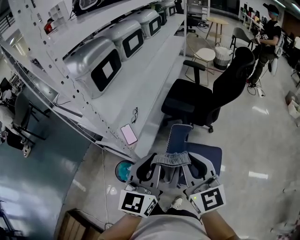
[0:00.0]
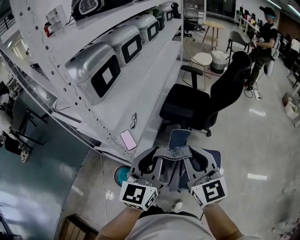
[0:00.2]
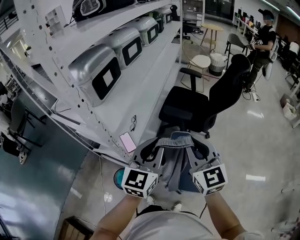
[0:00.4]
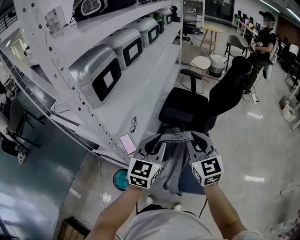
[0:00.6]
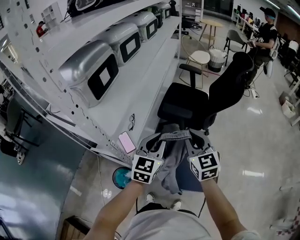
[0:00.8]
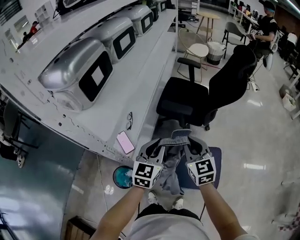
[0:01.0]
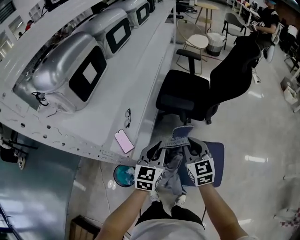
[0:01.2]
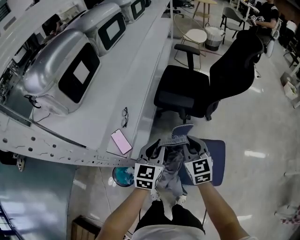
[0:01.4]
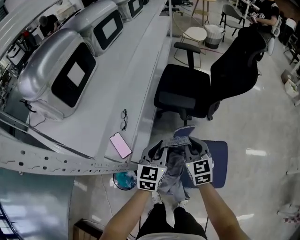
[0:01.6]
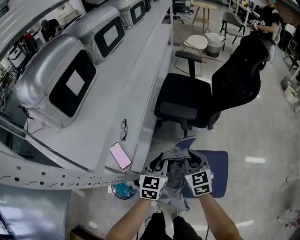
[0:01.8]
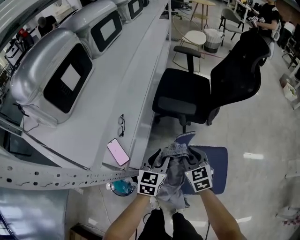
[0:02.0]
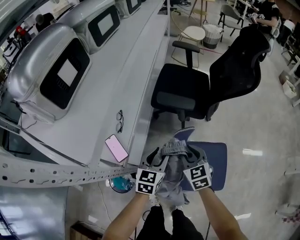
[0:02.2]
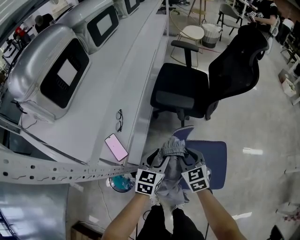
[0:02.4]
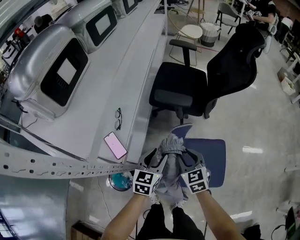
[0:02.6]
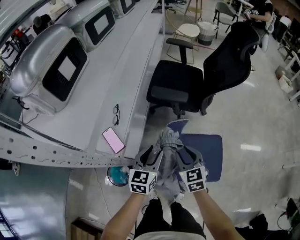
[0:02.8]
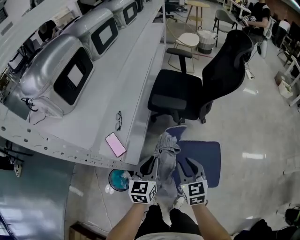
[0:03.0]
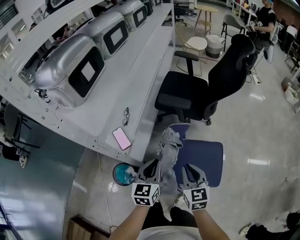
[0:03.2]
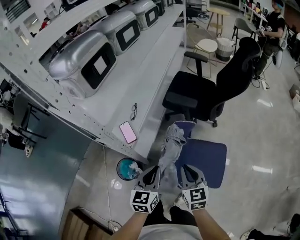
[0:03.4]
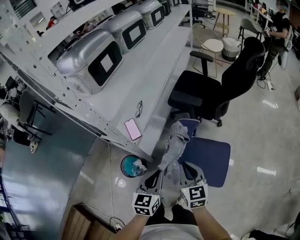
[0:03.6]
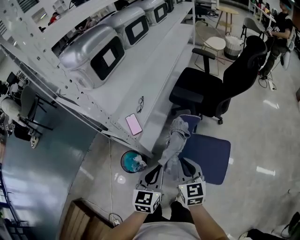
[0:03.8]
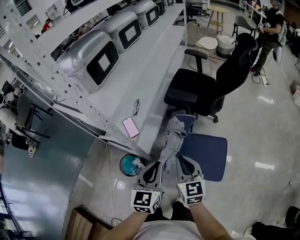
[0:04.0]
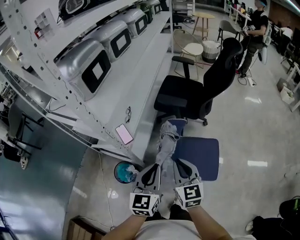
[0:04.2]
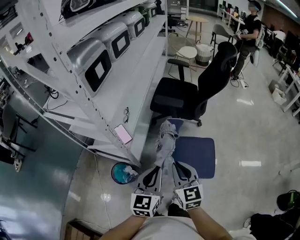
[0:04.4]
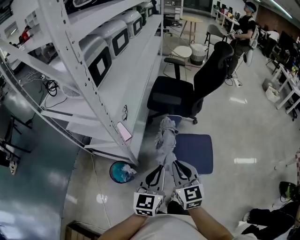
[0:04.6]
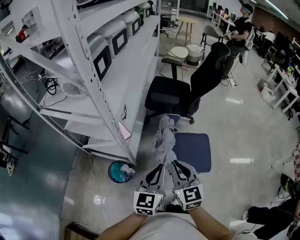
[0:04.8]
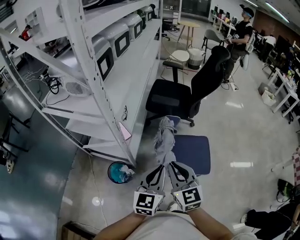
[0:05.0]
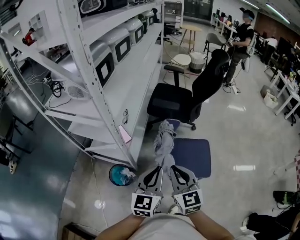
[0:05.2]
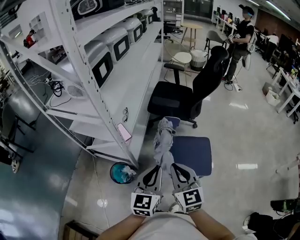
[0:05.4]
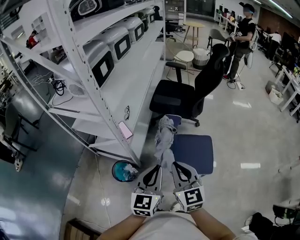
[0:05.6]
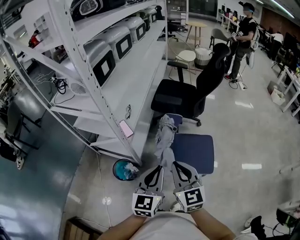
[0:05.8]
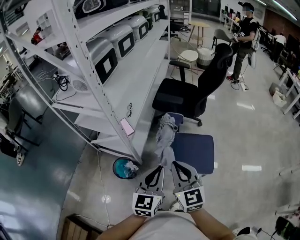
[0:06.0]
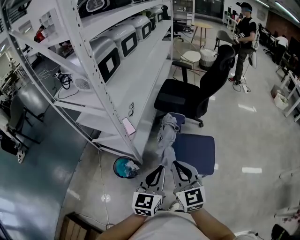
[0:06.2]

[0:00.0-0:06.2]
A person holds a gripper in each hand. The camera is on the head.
0:00.0 to 0:01.6: Both grippers move downward and forward, some 30 cm. The left gripper rotates approximately 20 degrees; the right gripper rotates approximately 30 degrees.
0:01.6 to 0:03.2: The grippers both shift backward by about 15 cm. The left gripper opens, then closes once more. The right gripper opens and closes again.
0:03.2 to 0:04.6: The left gripper shifts about 20 cm backward and upward; the right gripper shifts about 20 cm backward, upward and to the left.
0:04.6 to 0:06.2: The grippers both shift backward by roughly 5 cm.

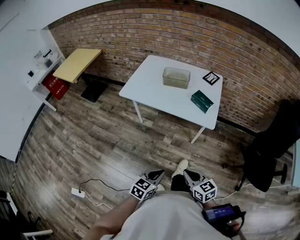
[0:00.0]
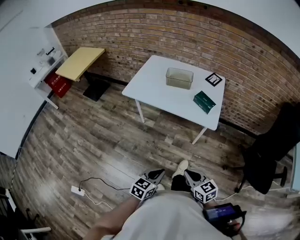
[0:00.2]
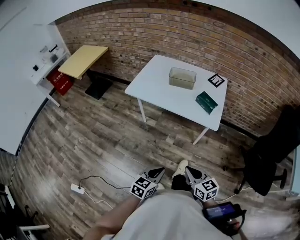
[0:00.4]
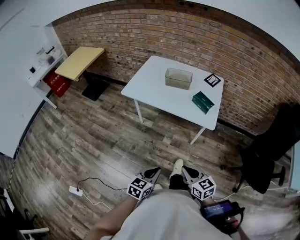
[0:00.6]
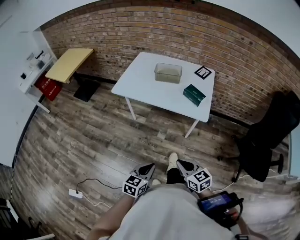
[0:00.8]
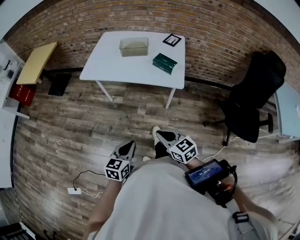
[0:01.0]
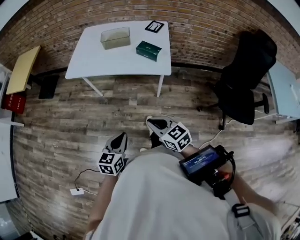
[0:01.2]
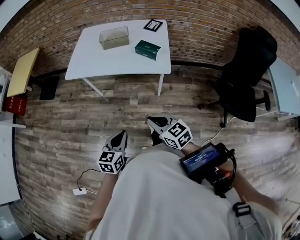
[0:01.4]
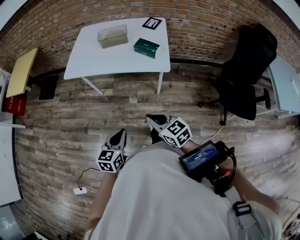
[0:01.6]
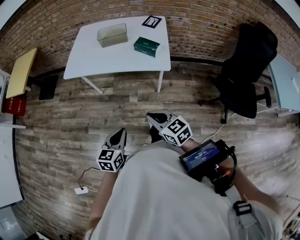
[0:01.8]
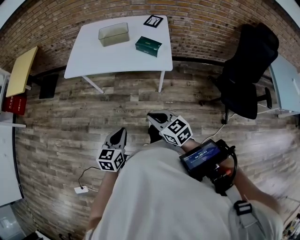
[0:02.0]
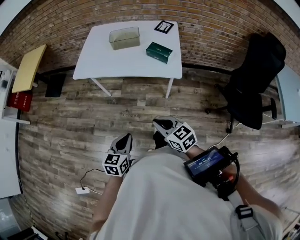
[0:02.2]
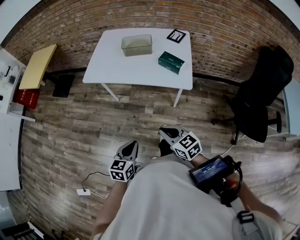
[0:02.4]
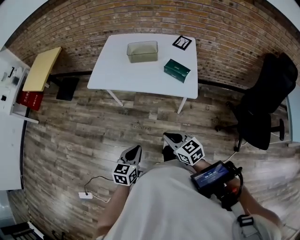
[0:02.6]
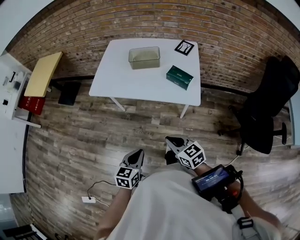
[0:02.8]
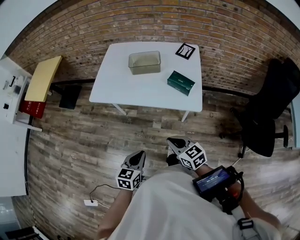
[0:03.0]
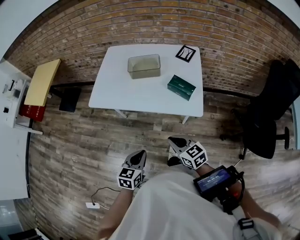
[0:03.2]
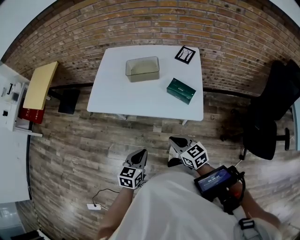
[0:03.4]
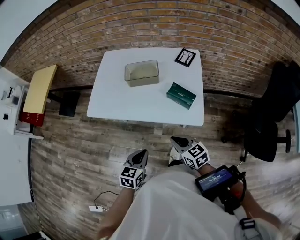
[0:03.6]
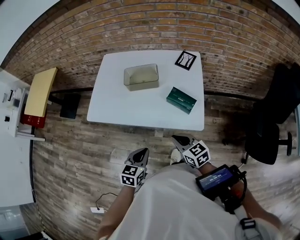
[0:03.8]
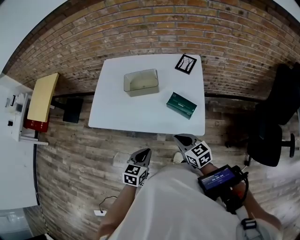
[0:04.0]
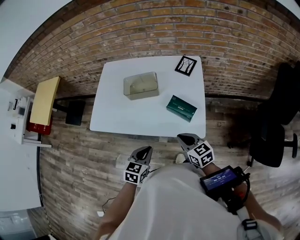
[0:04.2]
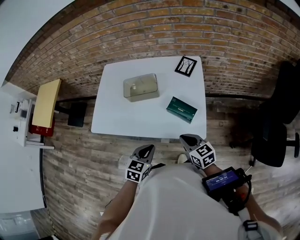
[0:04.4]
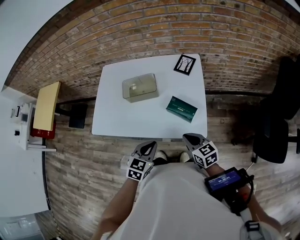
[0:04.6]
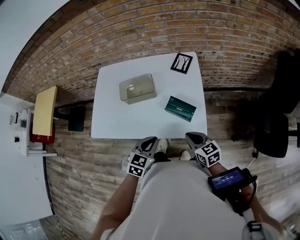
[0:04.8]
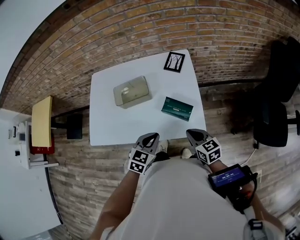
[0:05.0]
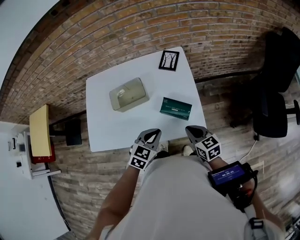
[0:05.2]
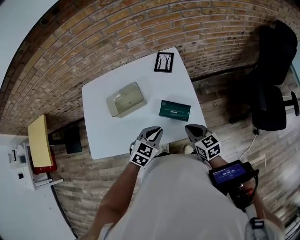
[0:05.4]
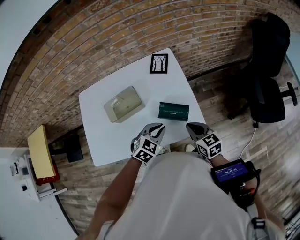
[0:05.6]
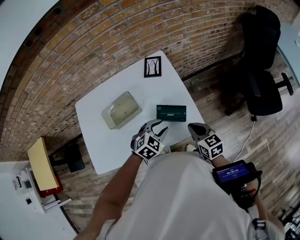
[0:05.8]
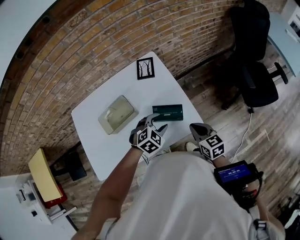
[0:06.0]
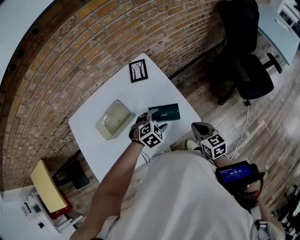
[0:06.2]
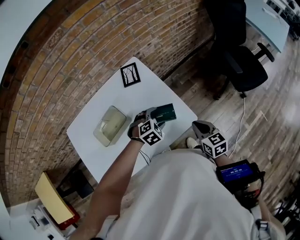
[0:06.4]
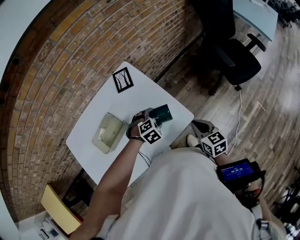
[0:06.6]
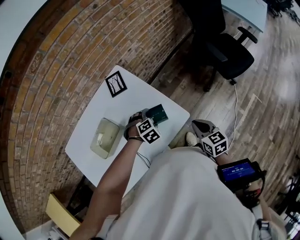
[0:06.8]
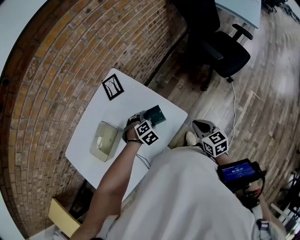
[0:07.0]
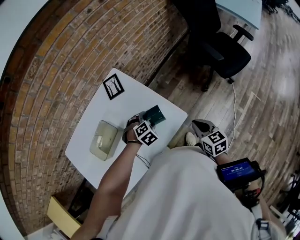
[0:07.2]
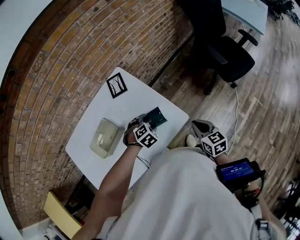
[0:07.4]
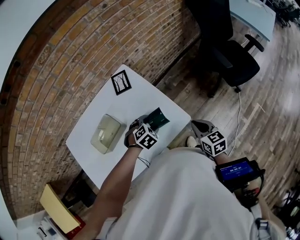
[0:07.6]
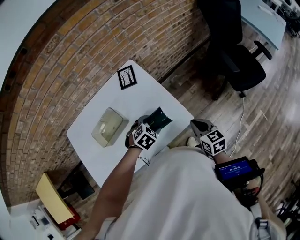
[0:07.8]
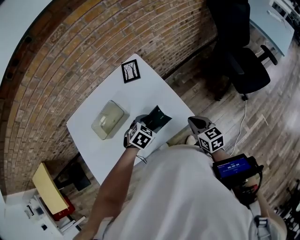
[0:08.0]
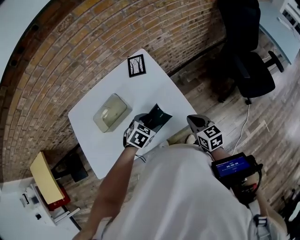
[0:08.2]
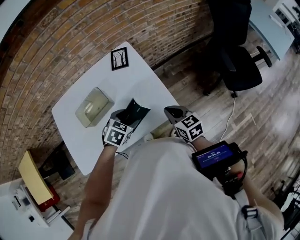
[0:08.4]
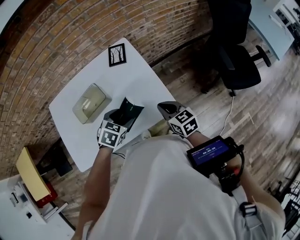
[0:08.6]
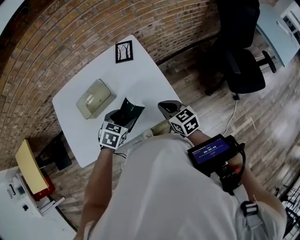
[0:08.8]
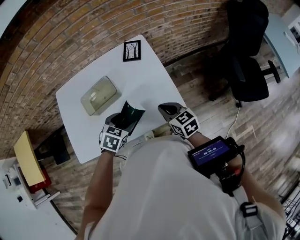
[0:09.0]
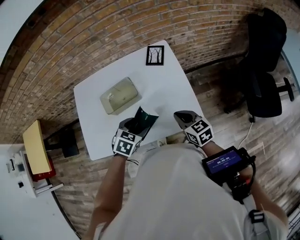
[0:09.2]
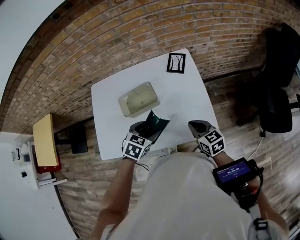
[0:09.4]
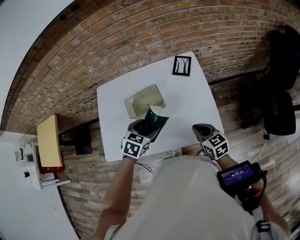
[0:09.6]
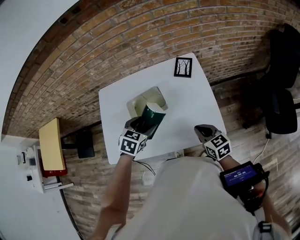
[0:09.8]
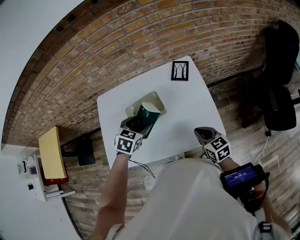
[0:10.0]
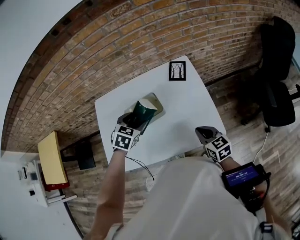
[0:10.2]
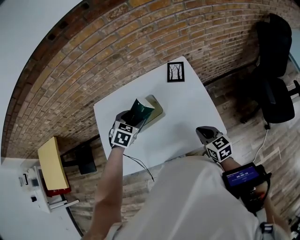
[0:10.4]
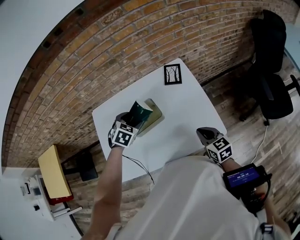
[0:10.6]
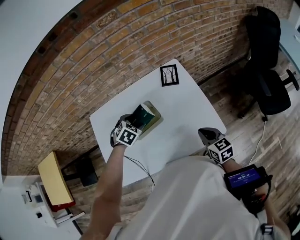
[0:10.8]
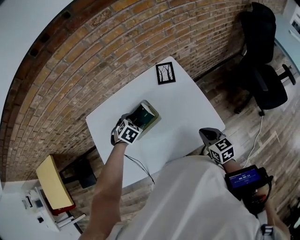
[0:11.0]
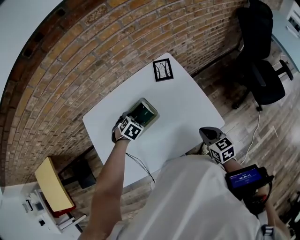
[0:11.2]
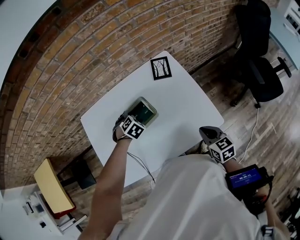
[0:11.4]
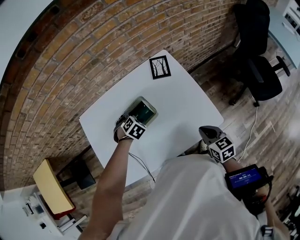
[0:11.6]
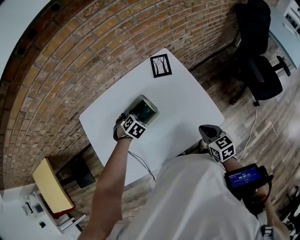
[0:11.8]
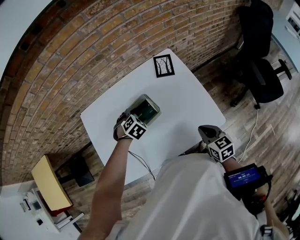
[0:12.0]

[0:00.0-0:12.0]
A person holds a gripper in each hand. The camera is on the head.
0:00.0 to 0:01.6: There are only small adjustments of the grippers.
0:01.6 to 0:03.0: The grippers both shift forward by roughly 10 cm.
0:03.0 to 0:04.4: The two grippers go roughly 20 cm forward and to the right.
0:04.4 to 0:06.0: The left gripper changes place by approximately 20 cm, rotates around the line of its fingers by roughly 60 degrees, clockwise from behind, and opens up. Meanwhile the right gripper moves about 10 cm, and turns by roughly 40 degrees.
0:06.0 to 0:07.6: The right gripper shifts approximately 10 cm to the right.
0:07.6 to 0:09.0: The right gripper shifts approximately 15 cm to the left, and turns by roughly 30 degrees. The left gripper goes about 15 cm to the left, backward and upward, and rolls counterclockwise, seen from behind, by approximately 40 degrees.
0:09.0 to 0:10.4: The left gripper shifts about 20 cm forward, to the left and upward.
0:10.4 to 0:12.0: The left gripper goes some 10 cm downward, and turns by roughly 30 degrees.

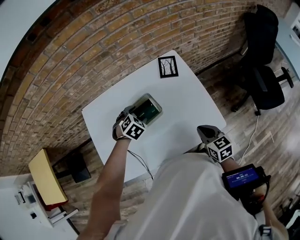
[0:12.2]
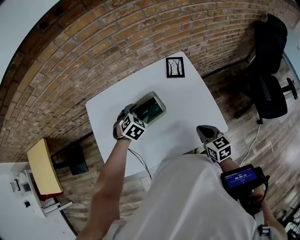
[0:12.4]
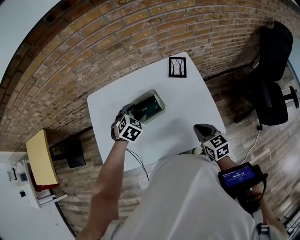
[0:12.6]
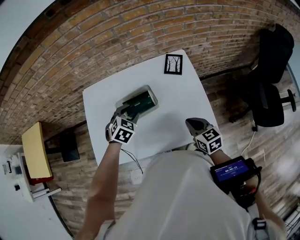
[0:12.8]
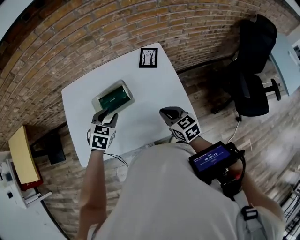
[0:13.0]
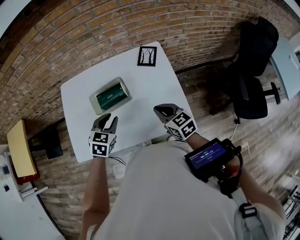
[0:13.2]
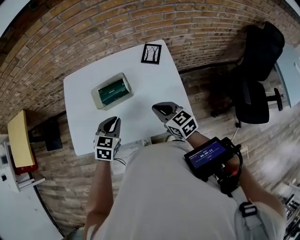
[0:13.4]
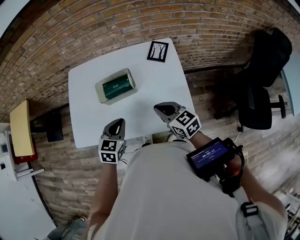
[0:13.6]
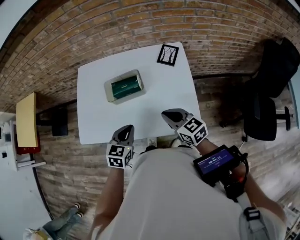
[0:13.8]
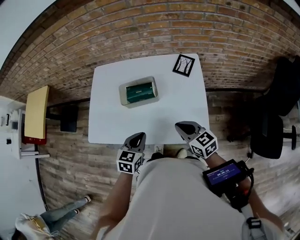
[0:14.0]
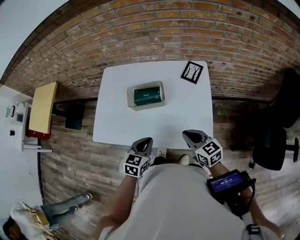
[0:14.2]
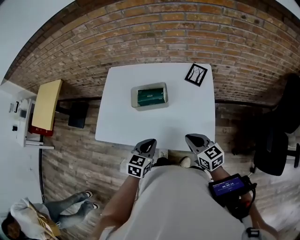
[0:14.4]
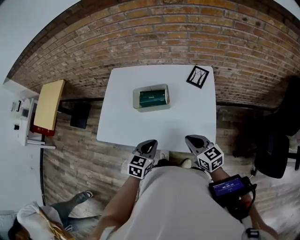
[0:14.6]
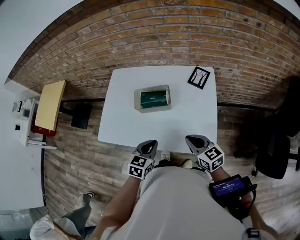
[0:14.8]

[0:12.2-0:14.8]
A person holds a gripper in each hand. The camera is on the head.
0:12.2 to 0:13.4: The left gripper shifts about 15 cm backward and upward, turns by approximately 40 degrees, and closes up, while the right gripper ends up some 5 cm from where it was, and changes its angle by roughly 30 degrees.
0:13.4 to 0:14.8: The left gripper heads backward, covering roughly 10 cm, while the right gripper travels backward by approximately 5 cm.

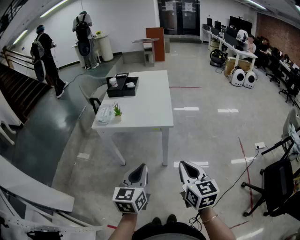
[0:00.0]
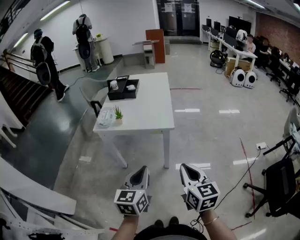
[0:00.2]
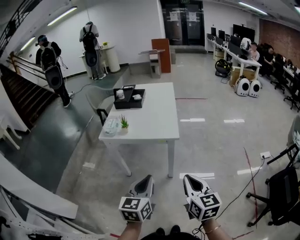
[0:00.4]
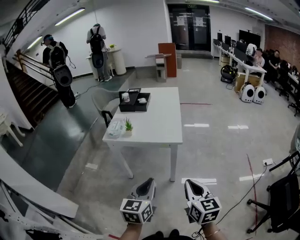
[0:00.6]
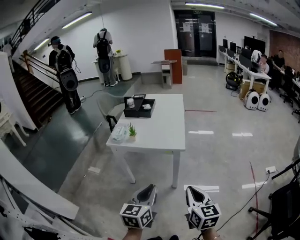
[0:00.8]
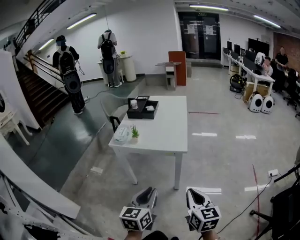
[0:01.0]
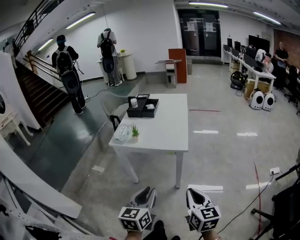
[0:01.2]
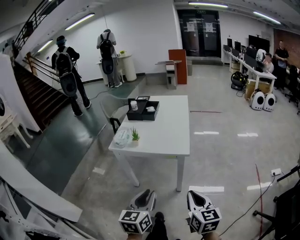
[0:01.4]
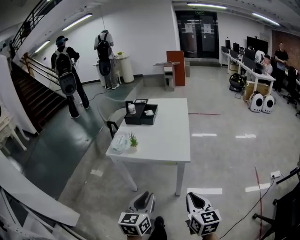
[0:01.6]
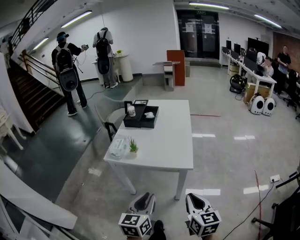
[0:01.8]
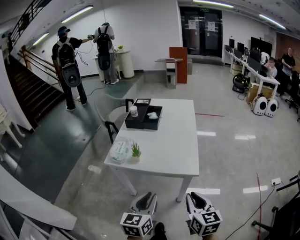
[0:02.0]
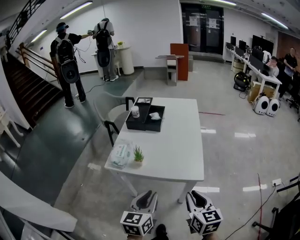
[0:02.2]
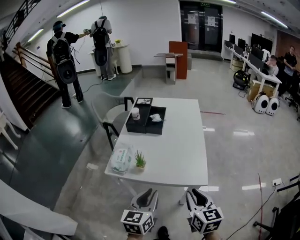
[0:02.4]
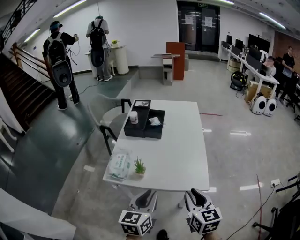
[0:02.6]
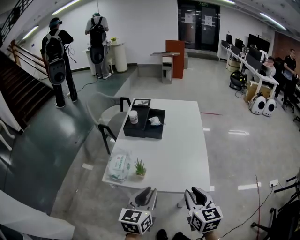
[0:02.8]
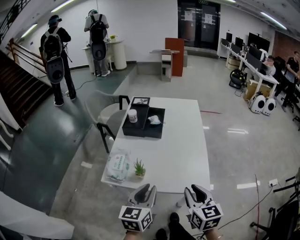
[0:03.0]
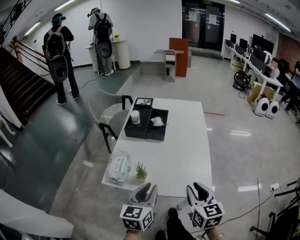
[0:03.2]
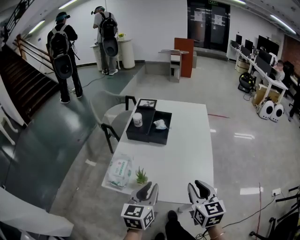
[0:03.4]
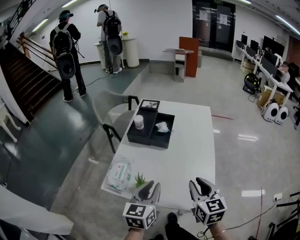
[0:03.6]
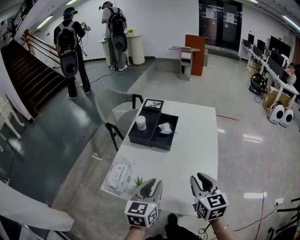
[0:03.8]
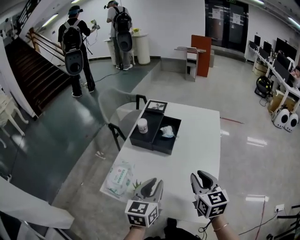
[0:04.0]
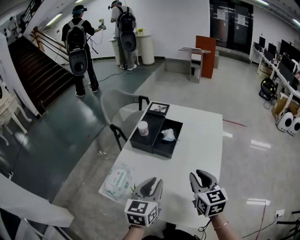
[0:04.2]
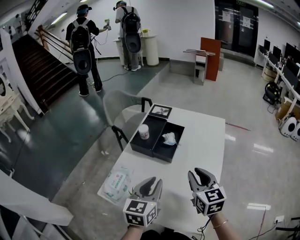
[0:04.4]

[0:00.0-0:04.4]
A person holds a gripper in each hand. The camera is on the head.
0:00.0 to 0:01.4: The grippers stay close to where they were, moving slightly.
0:01.4 to 0:03.0: Both grippers travel together forward, roughly 35 cm. The right gripper opens up.
0:03.0 to 0:04.4: Both grippers travel together forward, some 25 cm.
